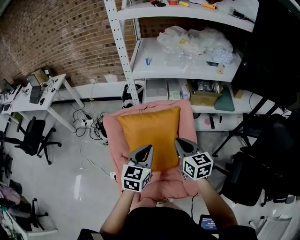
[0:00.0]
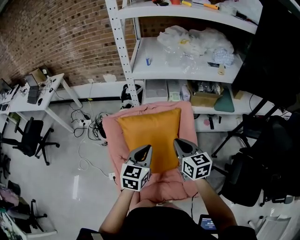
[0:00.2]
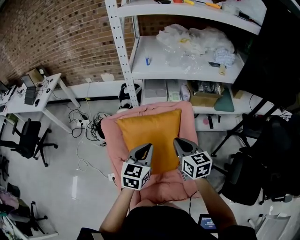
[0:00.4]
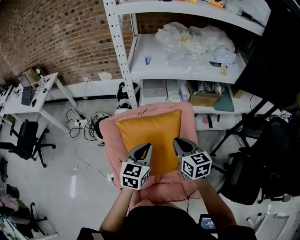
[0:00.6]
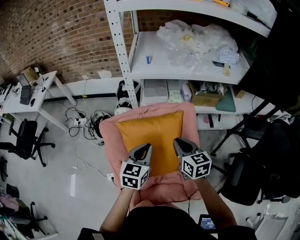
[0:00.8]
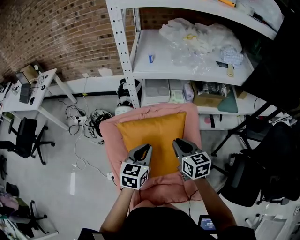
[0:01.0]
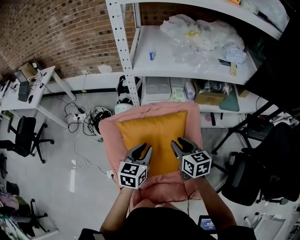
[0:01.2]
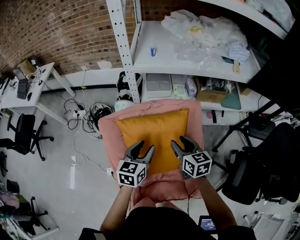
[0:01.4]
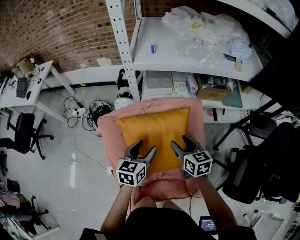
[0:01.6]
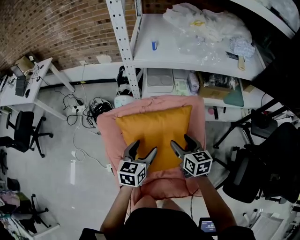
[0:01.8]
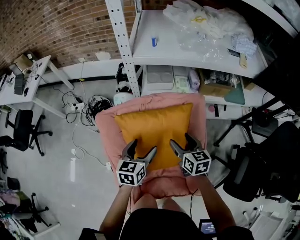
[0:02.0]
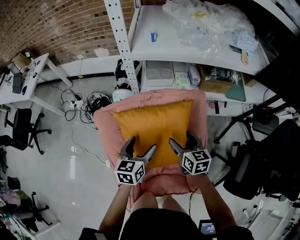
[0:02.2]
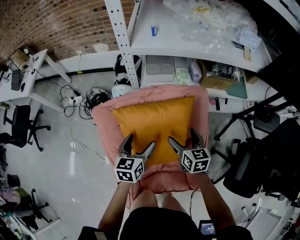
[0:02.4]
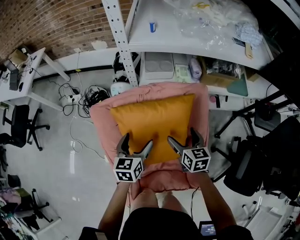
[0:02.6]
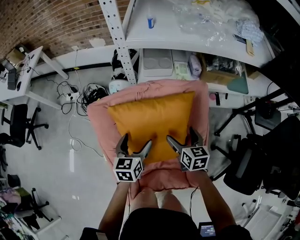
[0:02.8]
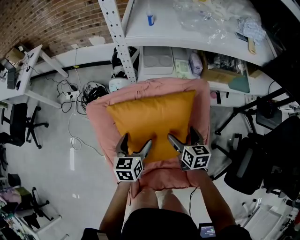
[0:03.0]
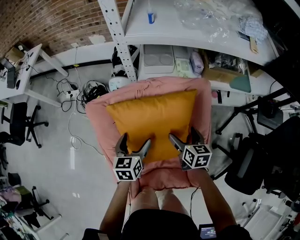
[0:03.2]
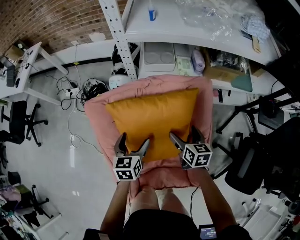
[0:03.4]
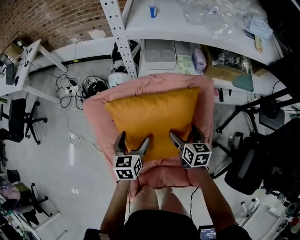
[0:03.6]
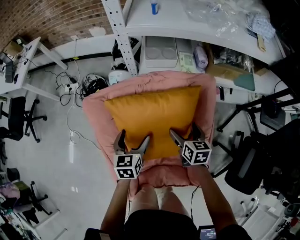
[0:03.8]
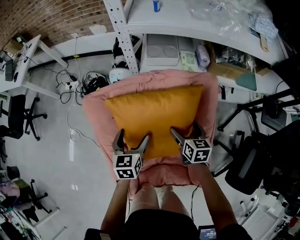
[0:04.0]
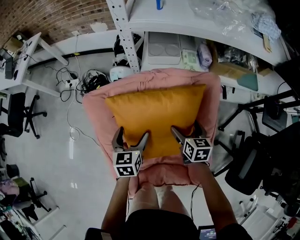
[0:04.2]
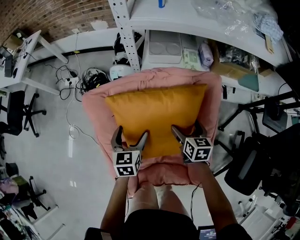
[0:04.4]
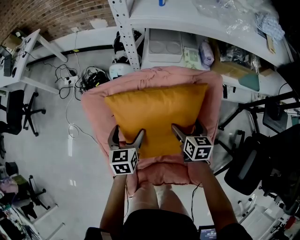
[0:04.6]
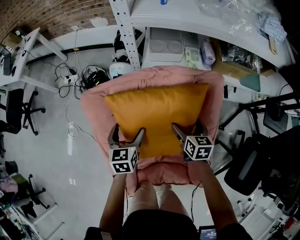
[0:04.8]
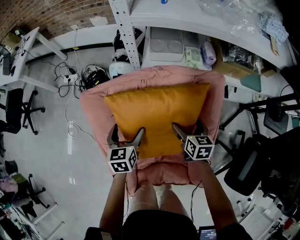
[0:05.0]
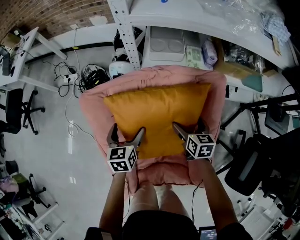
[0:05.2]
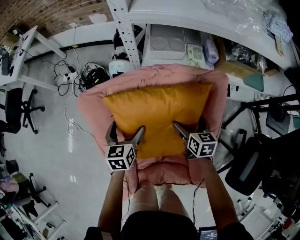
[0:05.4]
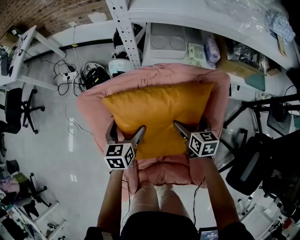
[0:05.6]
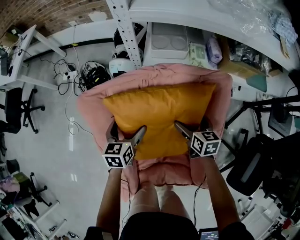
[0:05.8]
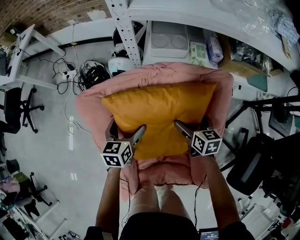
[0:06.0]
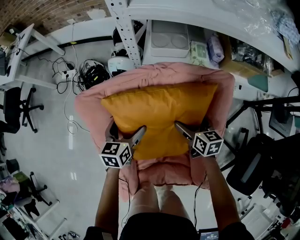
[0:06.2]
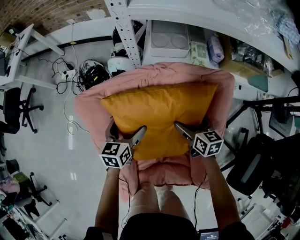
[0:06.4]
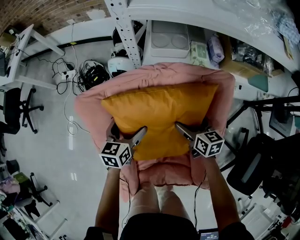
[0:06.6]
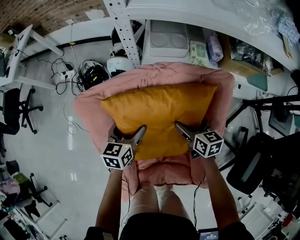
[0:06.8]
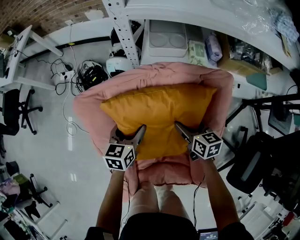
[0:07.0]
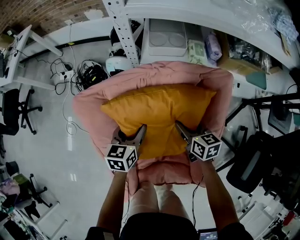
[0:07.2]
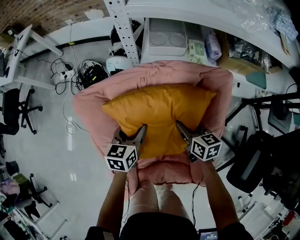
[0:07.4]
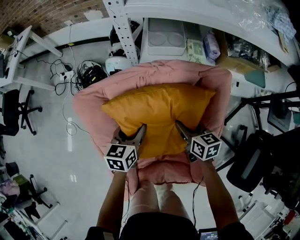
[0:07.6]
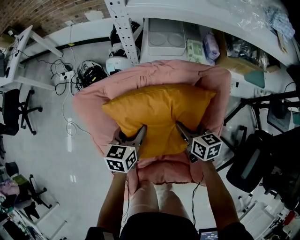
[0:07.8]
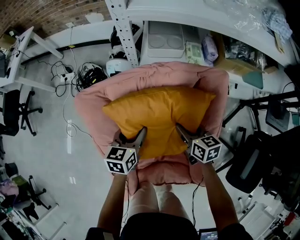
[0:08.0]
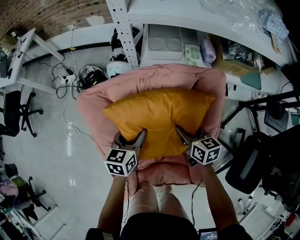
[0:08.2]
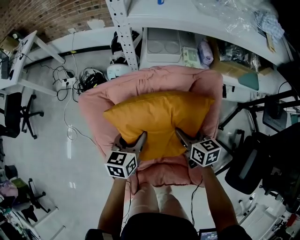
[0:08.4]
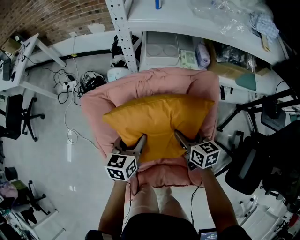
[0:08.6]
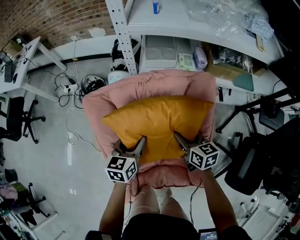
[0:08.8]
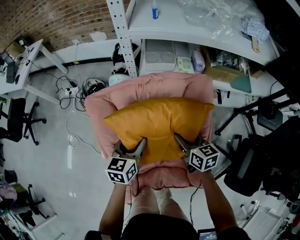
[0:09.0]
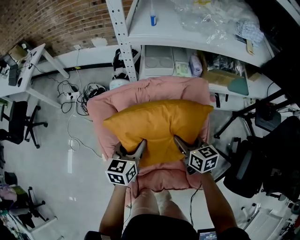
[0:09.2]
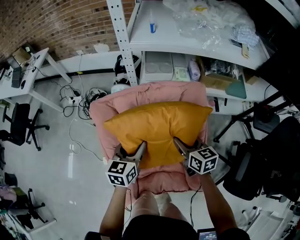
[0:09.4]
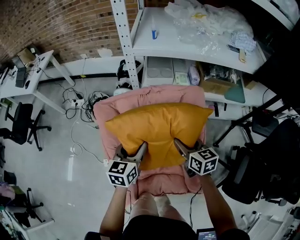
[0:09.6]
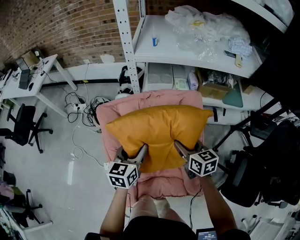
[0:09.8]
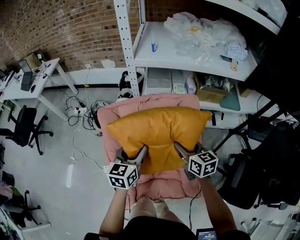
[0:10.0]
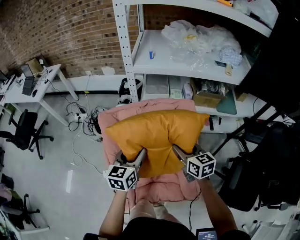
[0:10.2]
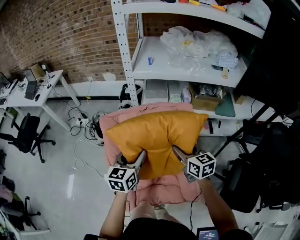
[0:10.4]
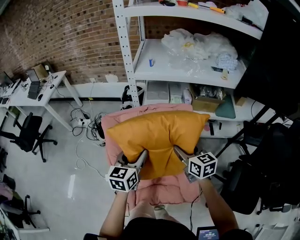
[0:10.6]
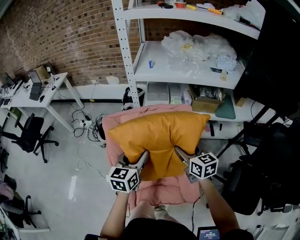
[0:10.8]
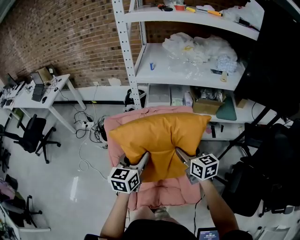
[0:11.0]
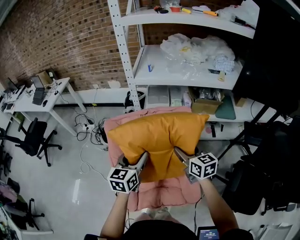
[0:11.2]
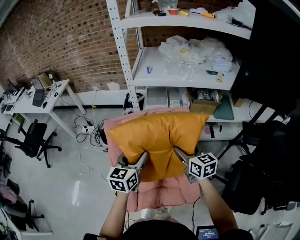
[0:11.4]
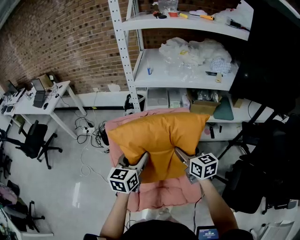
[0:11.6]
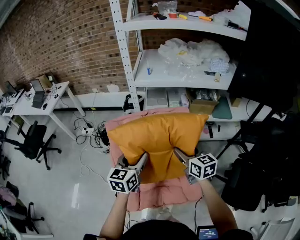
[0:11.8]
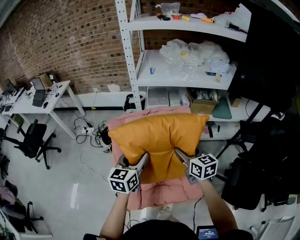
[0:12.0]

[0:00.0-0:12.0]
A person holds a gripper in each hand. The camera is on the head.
0:00.0 to 0:01.6: The right gripper moves downward and forward, about 15 cm, and opens its fingers; the left gripper moves forward, downward and to the left, roughly 15 cm, and opens up.
0:01.6 to 0:03.0: Both grippers move downward, some 10 cm. The right gripper opens. Meanwhile the left gripper opens up.
0:03.0 to 0:04.4: The right gripper shifts some 5 cm downward. The left gripper moves roughly 5 cm.
0:04.4 to 0:06.0: The two grippers go some 5 cm forward.
0:06.0 to 0:07.6: The right gripper closes its fingers, while the left gripper closes up.
0:07.6 to 0:09.0: Both grippers travel together upward and backward, approximately 10 cm.
0:09.0 to 0:10.4: The two grippers go about 15 cm upward and backward.
0:10.4 to 0:12.0: Both grippers move backward and upward, approximately 10 cm.

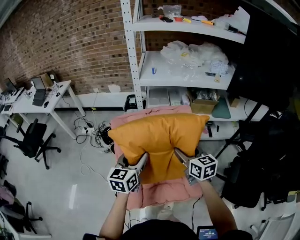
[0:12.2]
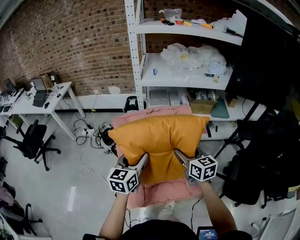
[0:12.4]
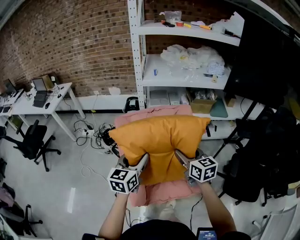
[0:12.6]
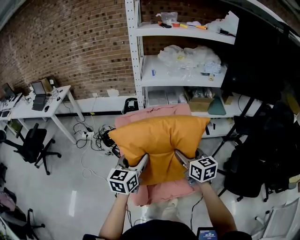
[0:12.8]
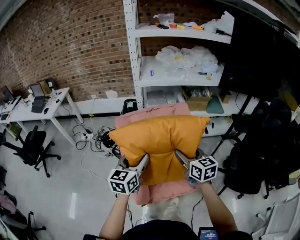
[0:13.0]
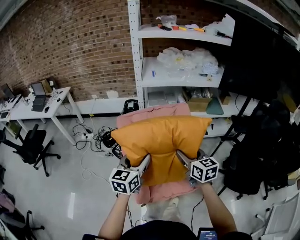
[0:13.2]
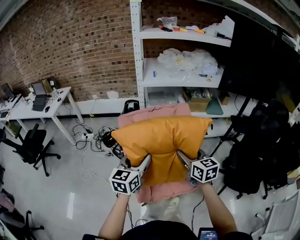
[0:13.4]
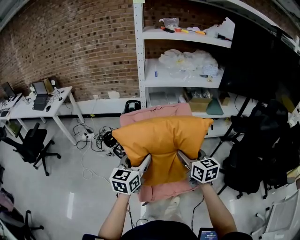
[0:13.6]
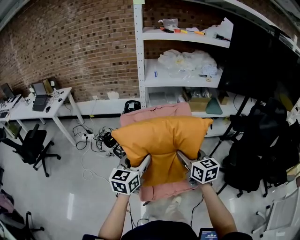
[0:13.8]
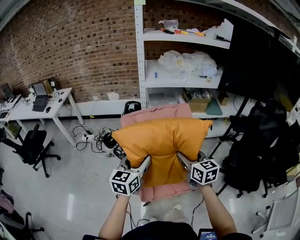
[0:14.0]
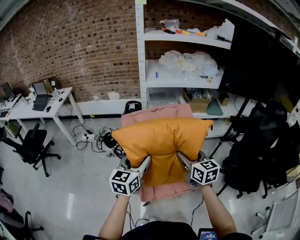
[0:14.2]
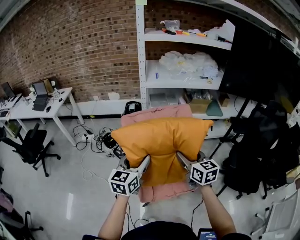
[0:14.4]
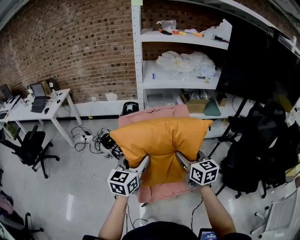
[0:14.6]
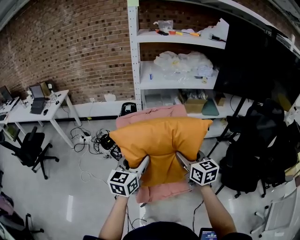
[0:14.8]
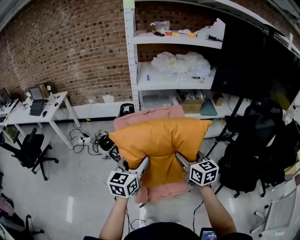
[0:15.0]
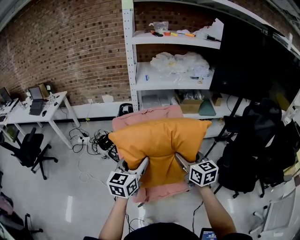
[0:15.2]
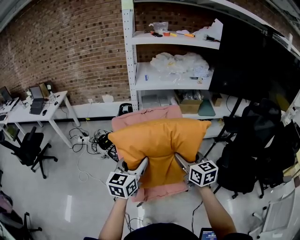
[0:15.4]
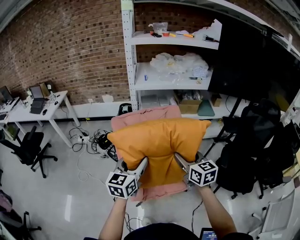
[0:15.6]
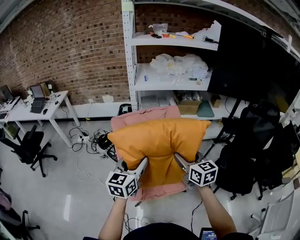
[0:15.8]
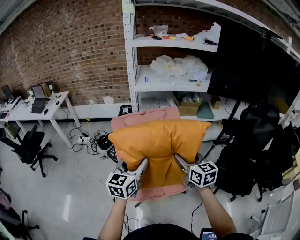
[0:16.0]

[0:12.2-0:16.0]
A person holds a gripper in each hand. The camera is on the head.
0:12.2 to 0:13.4: Both grippers move backward and to the left, roughly 15 cm.
0:13.4 to 0:14.8: There are only small adjustments of the grippers.
0:14.8 to 0:16.0: The two grippers go roughly 5 cm to the right.

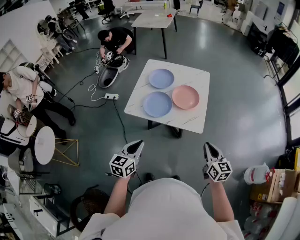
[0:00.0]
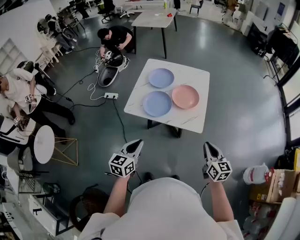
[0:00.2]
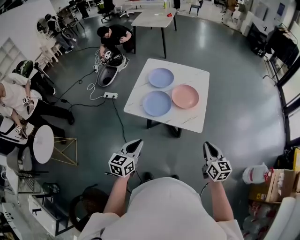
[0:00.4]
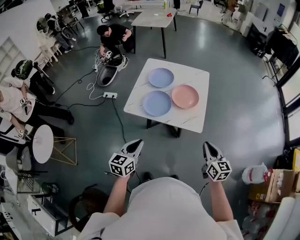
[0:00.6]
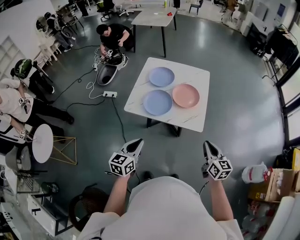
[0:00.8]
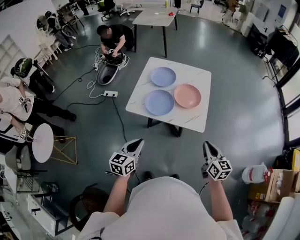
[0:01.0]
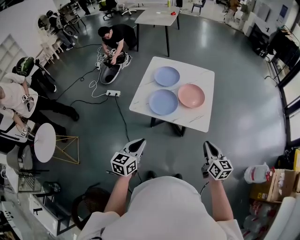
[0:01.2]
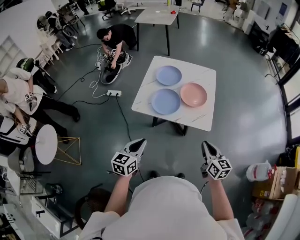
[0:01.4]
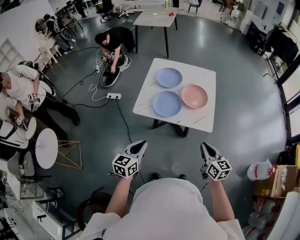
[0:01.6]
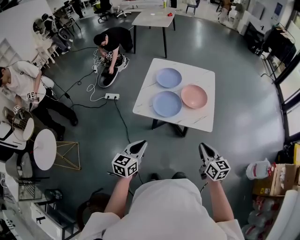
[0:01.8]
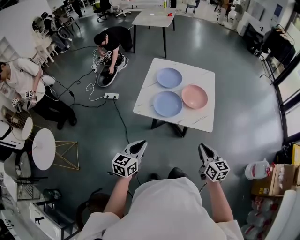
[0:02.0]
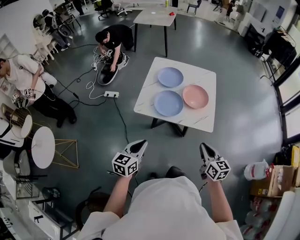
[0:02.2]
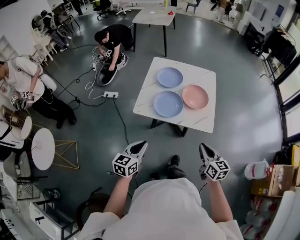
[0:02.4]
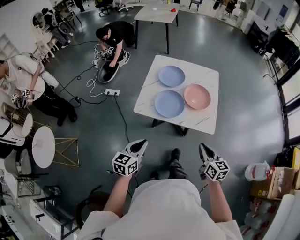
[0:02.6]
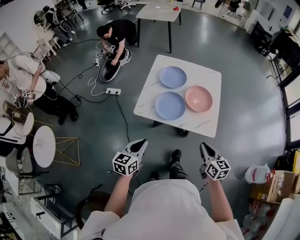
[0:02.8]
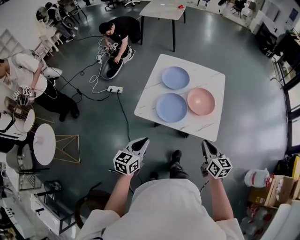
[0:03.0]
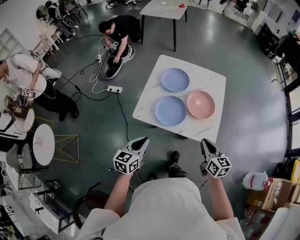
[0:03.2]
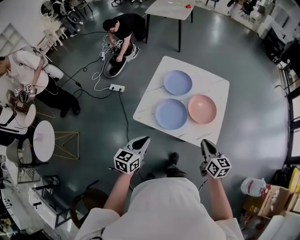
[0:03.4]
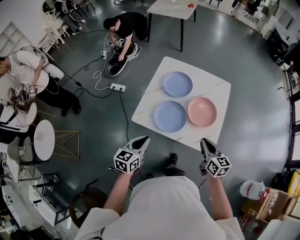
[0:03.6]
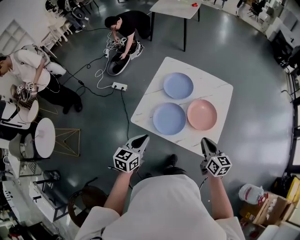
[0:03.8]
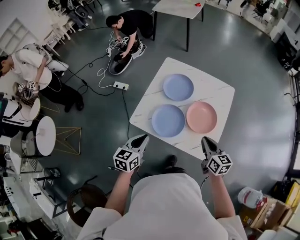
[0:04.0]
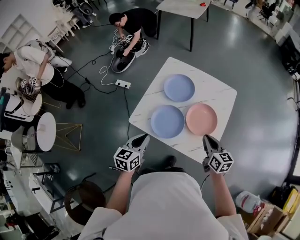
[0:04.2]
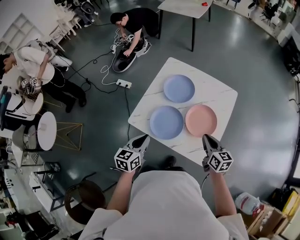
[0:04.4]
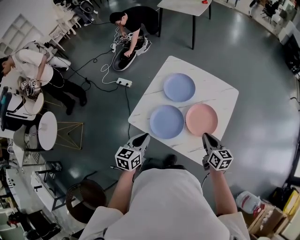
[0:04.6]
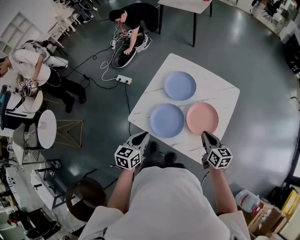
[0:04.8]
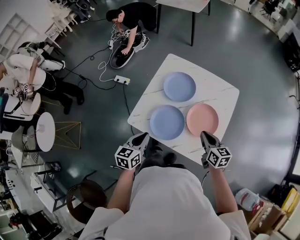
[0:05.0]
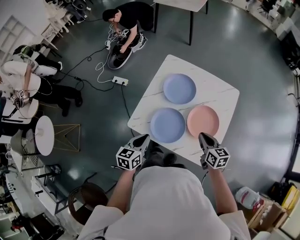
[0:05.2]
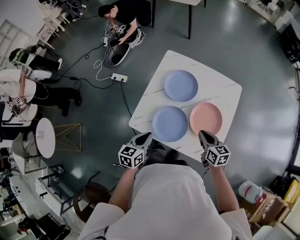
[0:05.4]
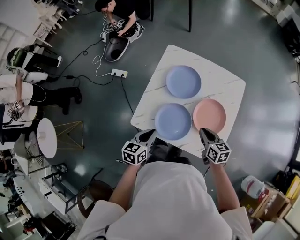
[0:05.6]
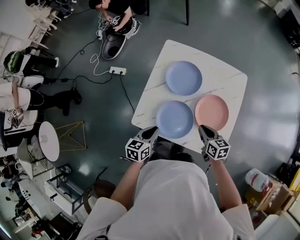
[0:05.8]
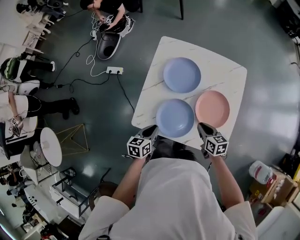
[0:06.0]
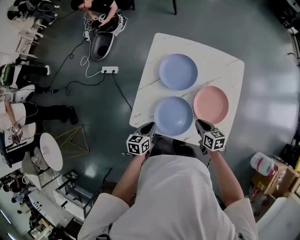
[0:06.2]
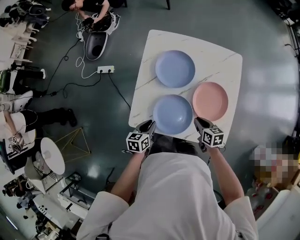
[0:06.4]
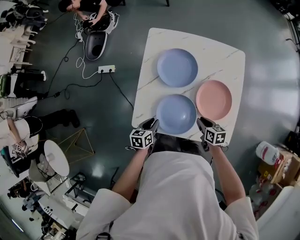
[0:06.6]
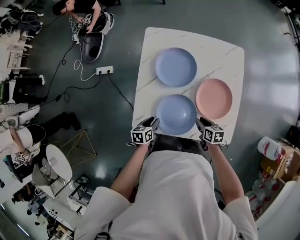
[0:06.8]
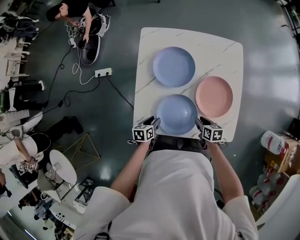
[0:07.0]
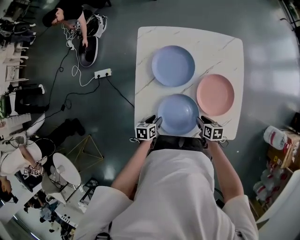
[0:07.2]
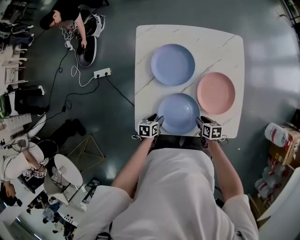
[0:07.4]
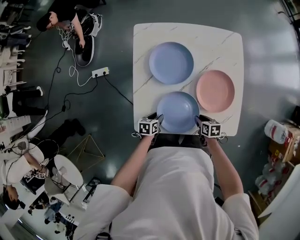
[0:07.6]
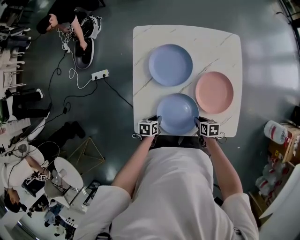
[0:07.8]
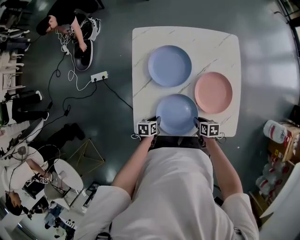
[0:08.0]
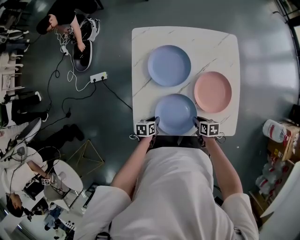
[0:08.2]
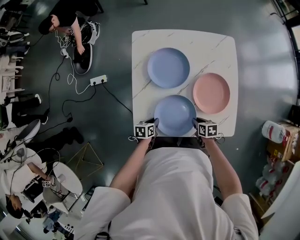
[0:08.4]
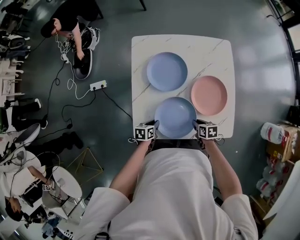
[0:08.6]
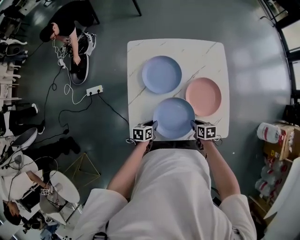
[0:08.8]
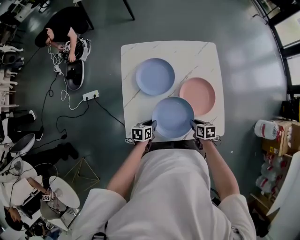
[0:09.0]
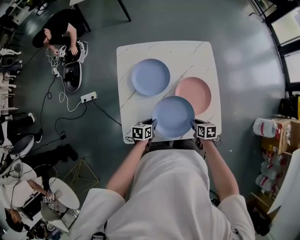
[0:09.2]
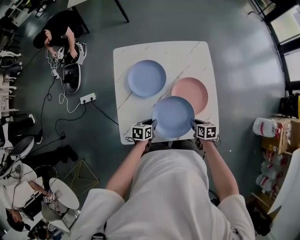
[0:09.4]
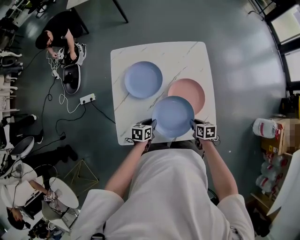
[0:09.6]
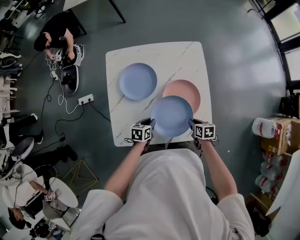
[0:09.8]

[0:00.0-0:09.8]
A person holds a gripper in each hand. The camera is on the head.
0:00.0 to 0:01.4: The two grippers go some 10 cm to the left.
0:01.4 to 0:02.8: Both grippers travel together forward, some 5 cm.
0:02.8 to 0:04.2: The right gripper shifts about 25 cm forward. Meanwhile the left gripper shifts approximately 20 cm forward and to the right.
0:04.2 to 0:05.6: The right gripper travels downward, forward and to the left by some 15 cm; the left gripper is displaced forward and downward by approximately 10 cm.
0:05.6 to 0:07.0: Both grippers travel together downward, approximately 20 cm. The left gripper rotates roughly 30 degrees, and opens its fingers, while the right gripper changes its angle by about 30 degrees.
0:07.0 to 0:08.4: The left gripper closes up.
0:08.4 to 0:09.8: The left gripper moves to the right, upward and forward, roughly 20 cm. Meanwhile the right gripper shifts about 15 cm to the right.
